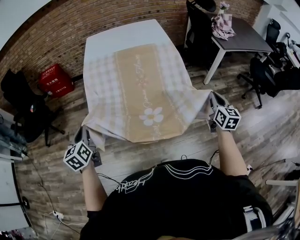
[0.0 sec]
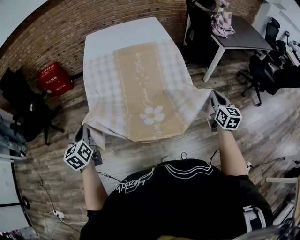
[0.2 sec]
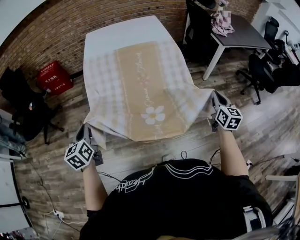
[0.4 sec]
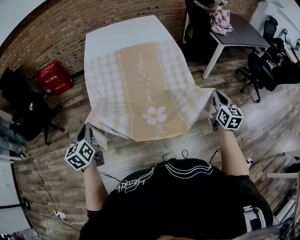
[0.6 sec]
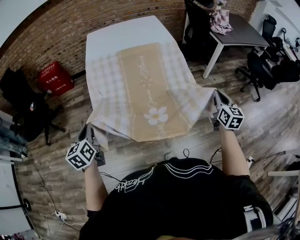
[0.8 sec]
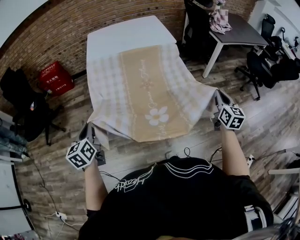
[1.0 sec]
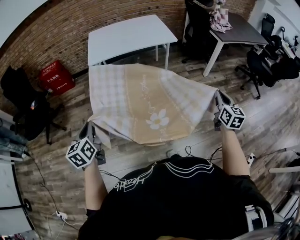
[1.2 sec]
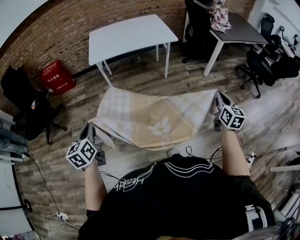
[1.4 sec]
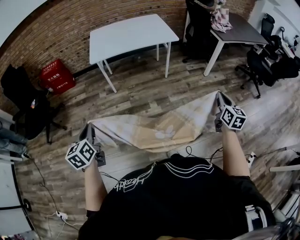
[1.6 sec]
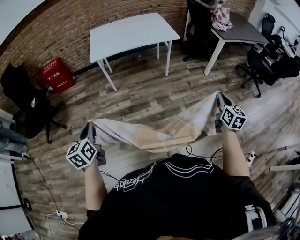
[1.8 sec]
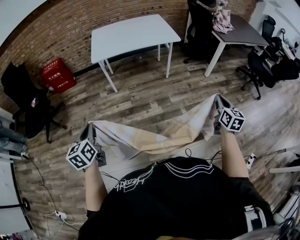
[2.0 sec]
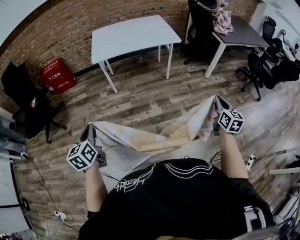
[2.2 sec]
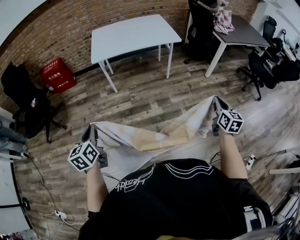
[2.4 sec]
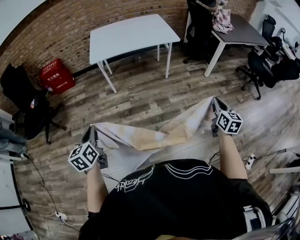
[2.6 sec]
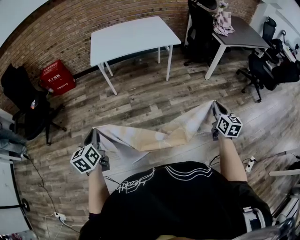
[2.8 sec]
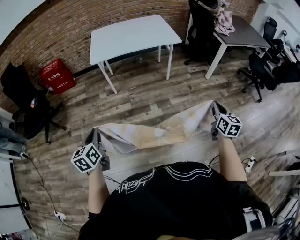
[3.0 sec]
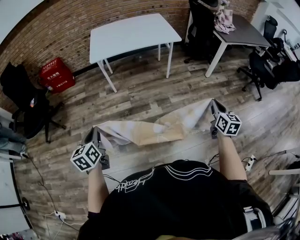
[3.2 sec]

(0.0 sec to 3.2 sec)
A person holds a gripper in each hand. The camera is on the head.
0.0 sec - 1.6 sec: The two grippers go about 10 cm backward and to the left.
1.6 sec - 3.2 sec: The right gripper moves about 5 cm.

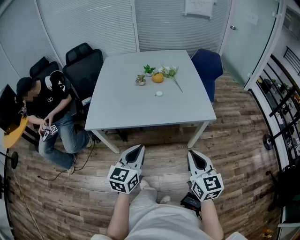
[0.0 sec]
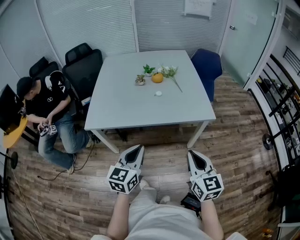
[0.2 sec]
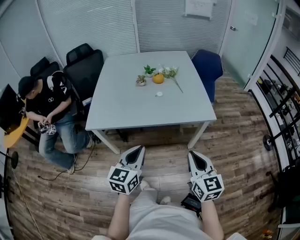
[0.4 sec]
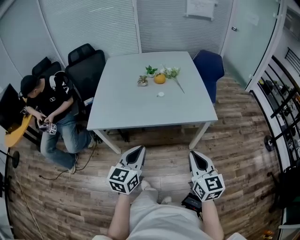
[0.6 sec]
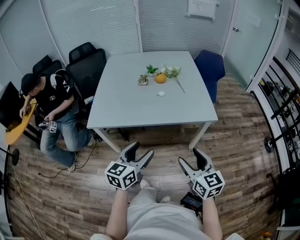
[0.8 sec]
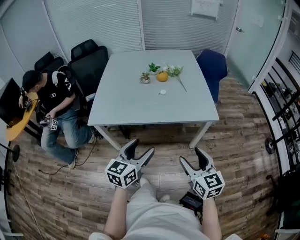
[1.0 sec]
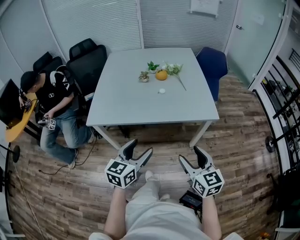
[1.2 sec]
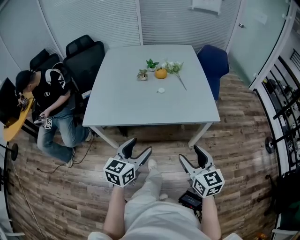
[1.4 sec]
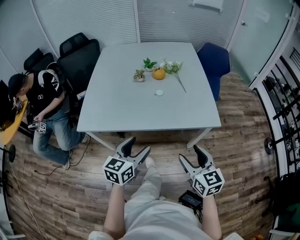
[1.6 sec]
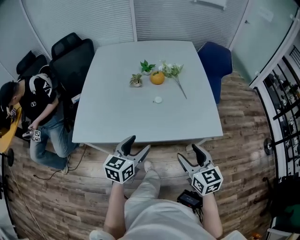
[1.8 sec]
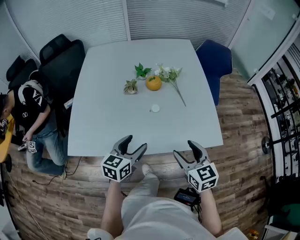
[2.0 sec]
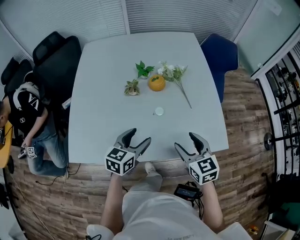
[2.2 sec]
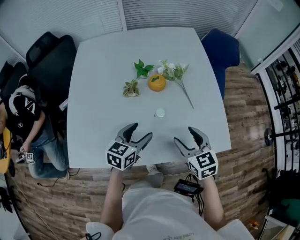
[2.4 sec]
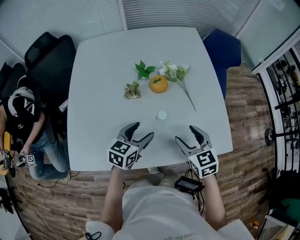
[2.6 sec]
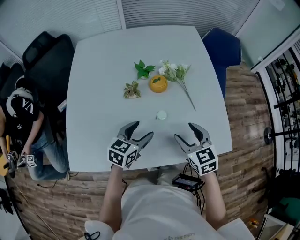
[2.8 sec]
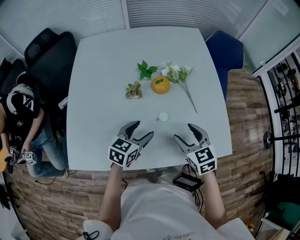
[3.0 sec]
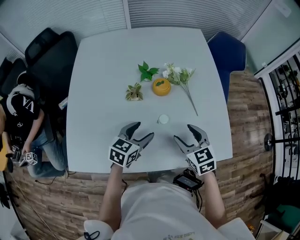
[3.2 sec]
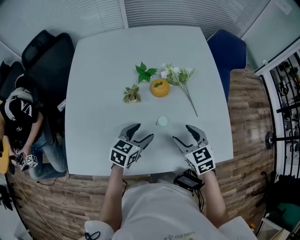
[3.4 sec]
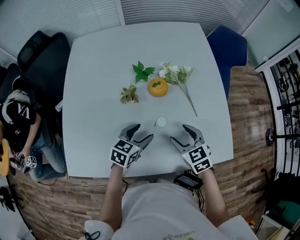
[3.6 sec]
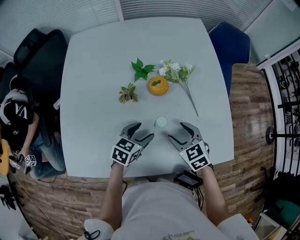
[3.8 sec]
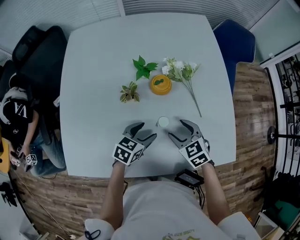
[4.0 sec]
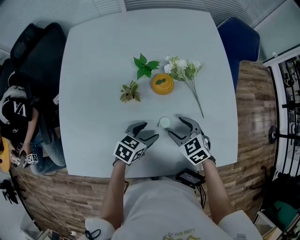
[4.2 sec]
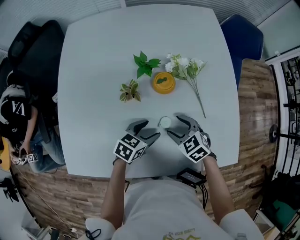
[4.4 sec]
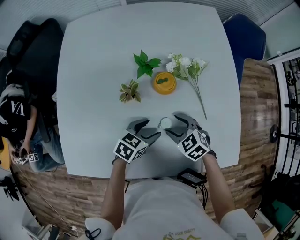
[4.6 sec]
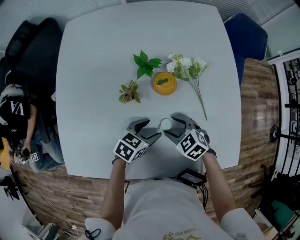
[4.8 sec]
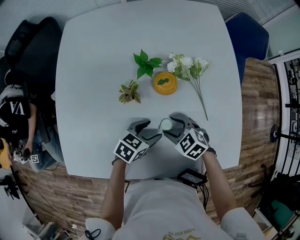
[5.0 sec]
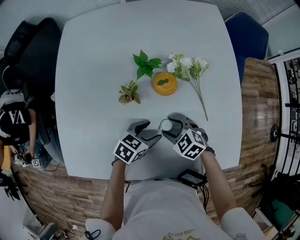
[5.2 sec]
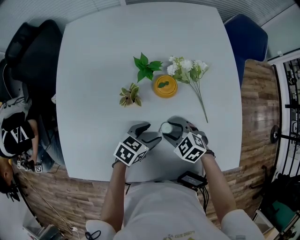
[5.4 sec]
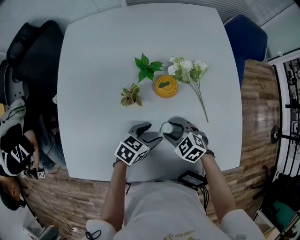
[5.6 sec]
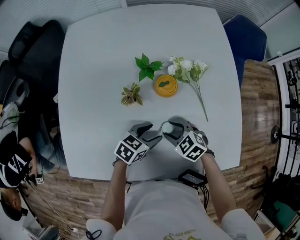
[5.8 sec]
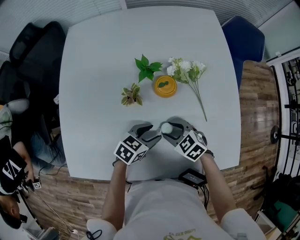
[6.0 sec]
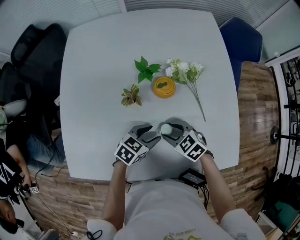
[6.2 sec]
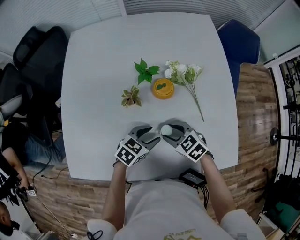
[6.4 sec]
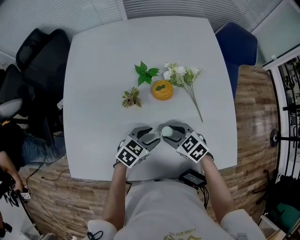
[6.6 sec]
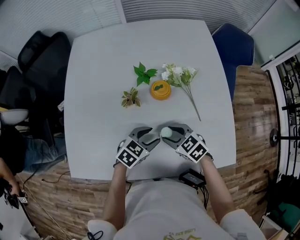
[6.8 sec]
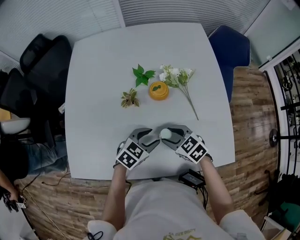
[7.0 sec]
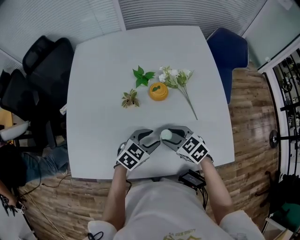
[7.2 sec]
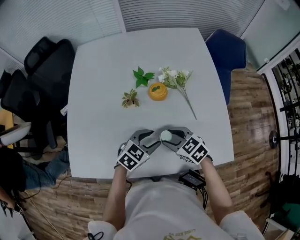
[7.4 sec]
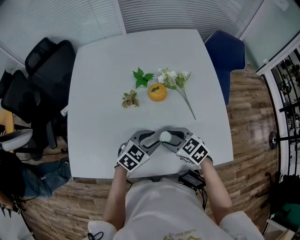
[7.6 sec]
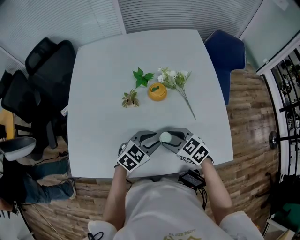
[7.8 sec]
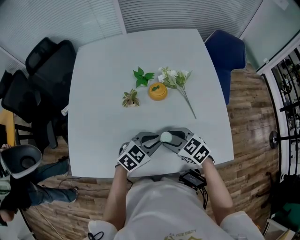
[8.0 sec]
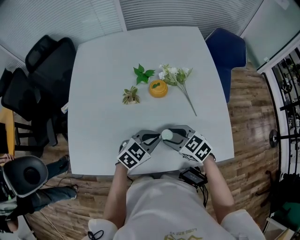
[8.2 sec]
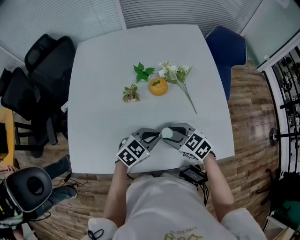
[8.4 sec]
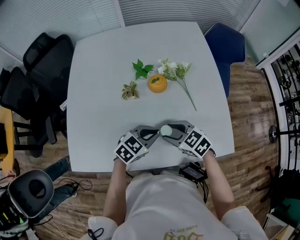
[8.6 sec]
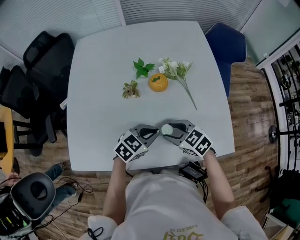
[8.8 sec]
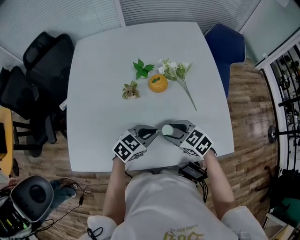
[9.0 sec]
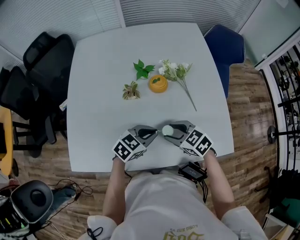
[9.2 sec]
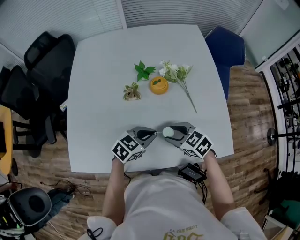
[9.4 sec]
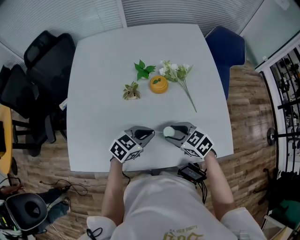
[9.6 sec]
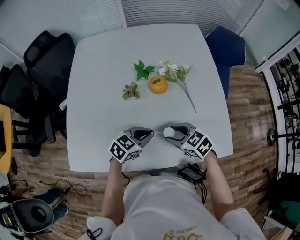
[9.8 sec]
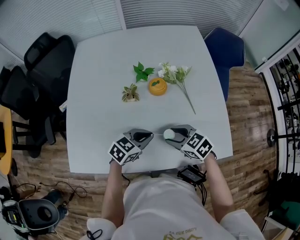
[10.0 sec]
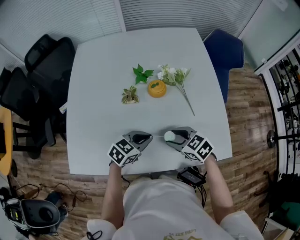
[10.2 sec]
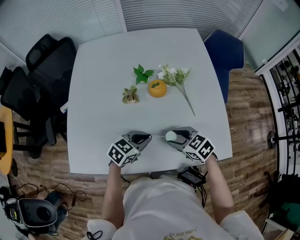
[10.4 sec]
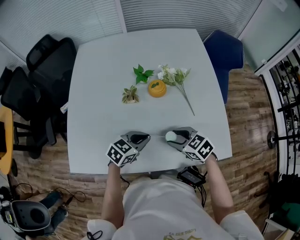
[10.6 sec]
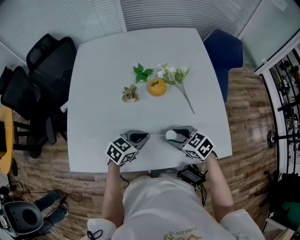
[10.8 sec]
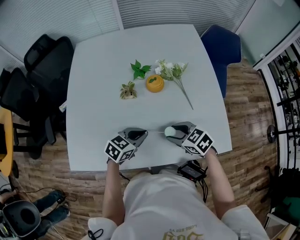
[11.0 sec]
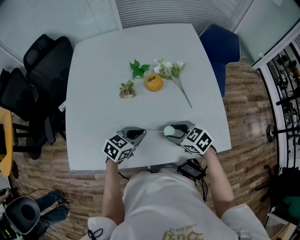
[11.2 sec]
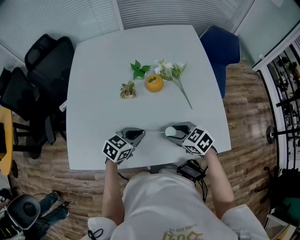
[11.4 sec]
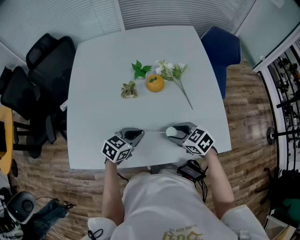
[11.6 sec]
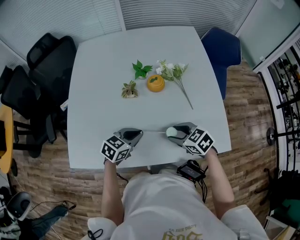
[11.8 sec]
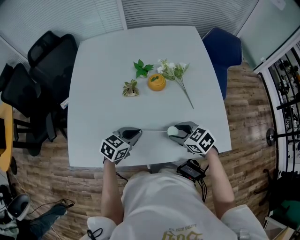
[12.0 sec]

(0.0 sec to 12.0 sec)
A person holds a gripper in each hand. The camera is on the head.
0.0 sec - 1.6 sec: The two grippers go roughly 10 cm forward and downward. The left gripper opens its fingers; the right gripper opens its fingers.
1.6 sec - 3.0 sec: The grippers both shift forward by about 35 cm.
3.0 sec - 4.4 sec: Both grippers travel together downward and forward, about 15 cm. The right gripper changes its angle by roughly 30 degrees.
4.4 sec - 6.0 sec: The grippers make only small movements.
6.0 sec - 7.6 sec: The grippers both shift upward by roughly 10 cm. The left gripper turns by some 20 degrees.
7.6 sec - 9.0 sec: The left gripper closes its fingers.
9.0 sec - 10.4 sec: The grippers move only a little.
10.4 sec - 12.0 sec: The grippers stay close to where they were, moving slightly.

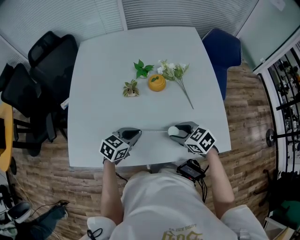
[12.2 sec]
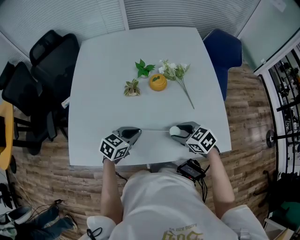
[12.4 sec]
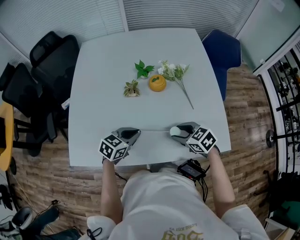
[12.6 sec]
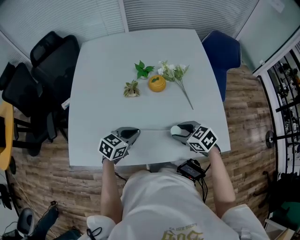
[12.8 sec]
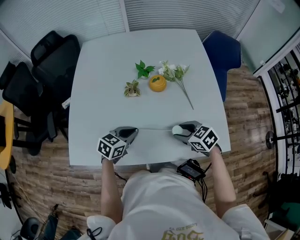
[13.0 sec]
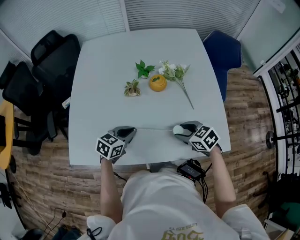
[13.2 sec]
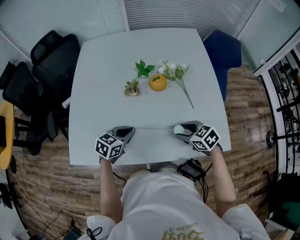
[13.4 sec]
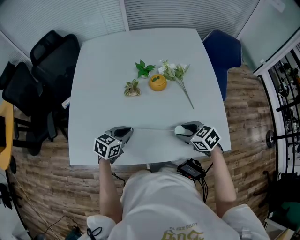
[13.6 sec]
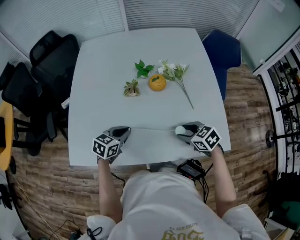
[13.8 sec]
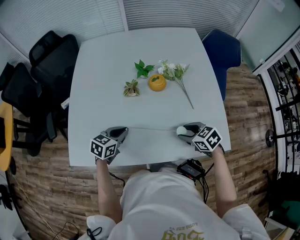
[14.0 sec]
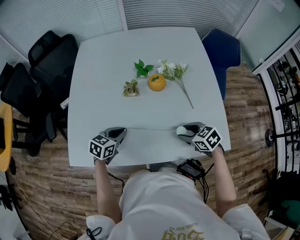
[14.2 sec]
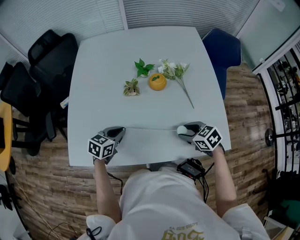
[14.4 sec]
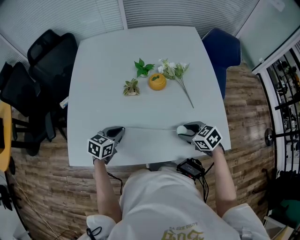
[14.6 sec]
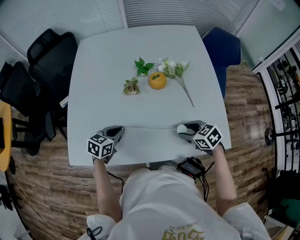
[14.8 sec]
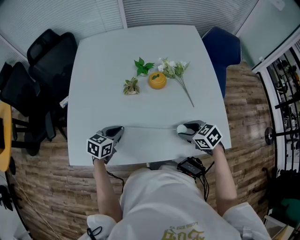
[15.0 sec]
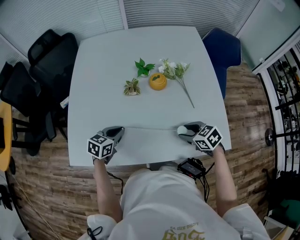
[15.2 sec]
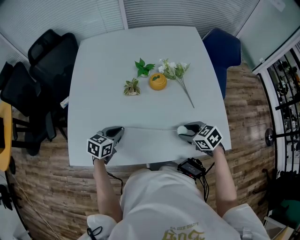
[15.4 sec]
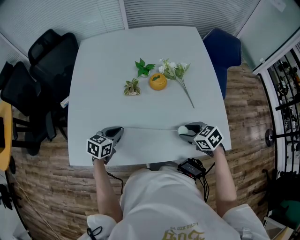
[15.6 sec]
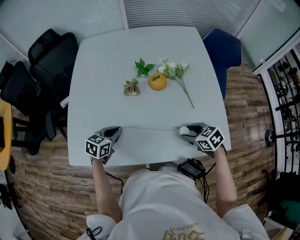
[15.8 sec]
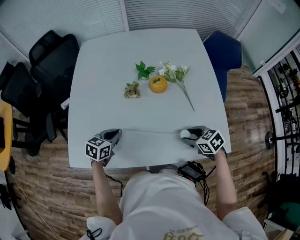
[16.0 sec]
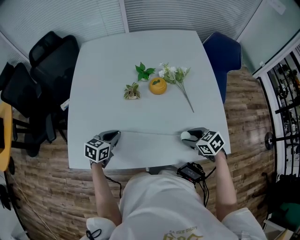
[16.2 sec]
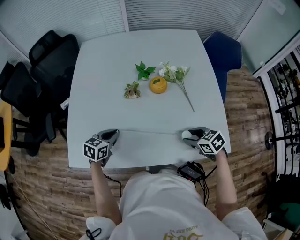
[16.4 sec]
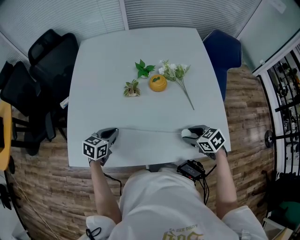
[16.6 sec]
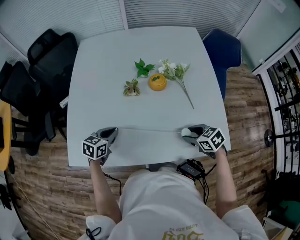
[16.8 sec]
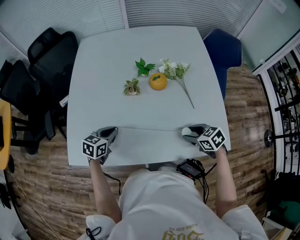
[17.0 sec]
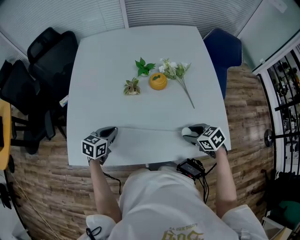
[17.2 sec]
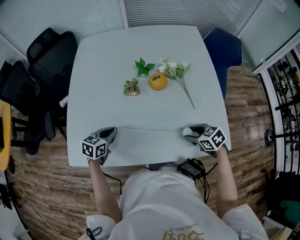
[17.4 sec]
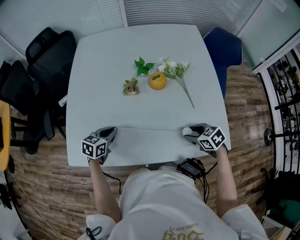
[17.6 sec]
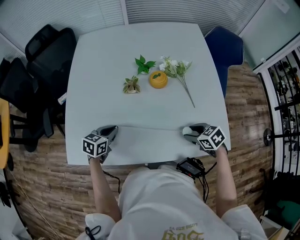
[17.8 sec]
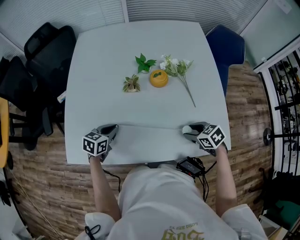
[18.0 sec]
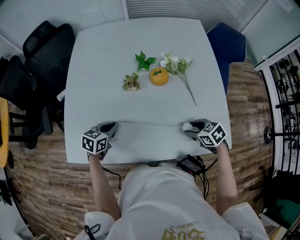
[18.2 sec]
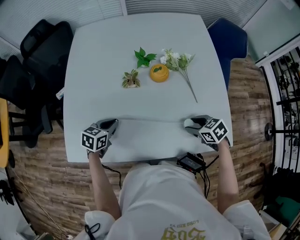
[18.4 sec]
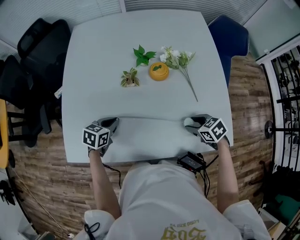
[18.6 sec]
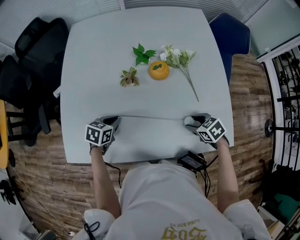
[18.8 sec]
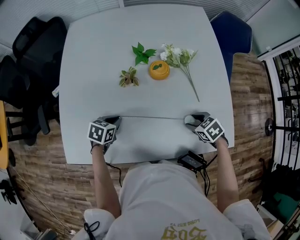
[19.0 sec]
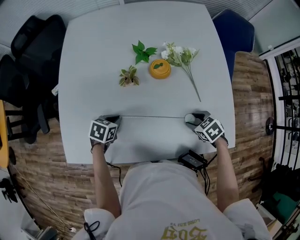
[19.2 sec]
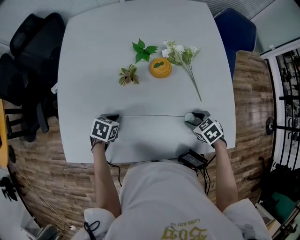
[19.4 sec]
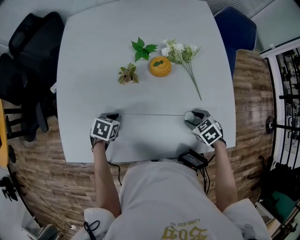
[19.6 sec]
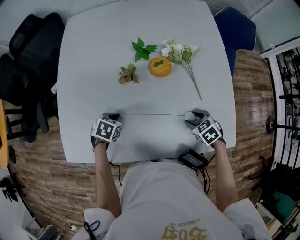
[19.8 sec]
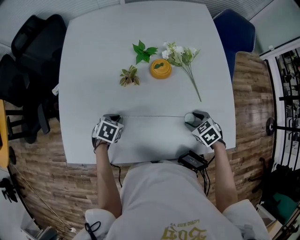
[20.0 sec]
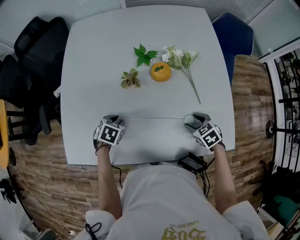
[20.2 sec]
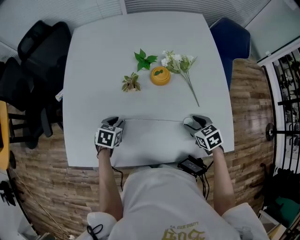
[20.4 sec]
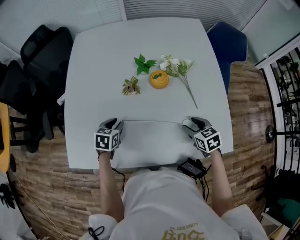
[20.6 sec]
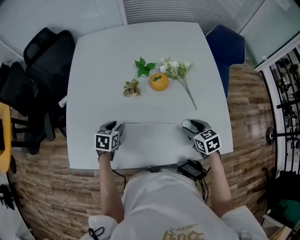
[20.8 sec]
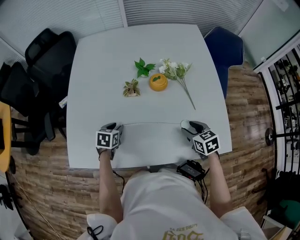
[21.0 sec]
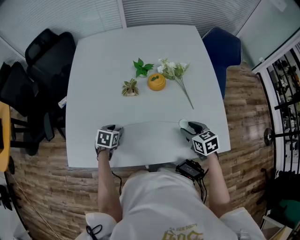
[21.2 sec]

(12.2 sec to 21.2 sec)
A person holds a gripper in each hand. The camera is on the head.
12.2 sec - 13.8 sec: The left gripper heads to the left, covering some 5 cm.
13.8 sec - 15.2 sec: The grippers make only small movements.
15.2 sec - 18.2 sec: The grippers make only small movements.
18.2 sec - 19.8 sec: Both grippers travel together downward, some 5 cm. The left gripper swivels roughly 30 degrees.
19.8 sec - 21.2 sec: The right gripper is displaced upward by some 10 cm, and rotates roughly 30 degrees; the left gripper opens its fingers.
